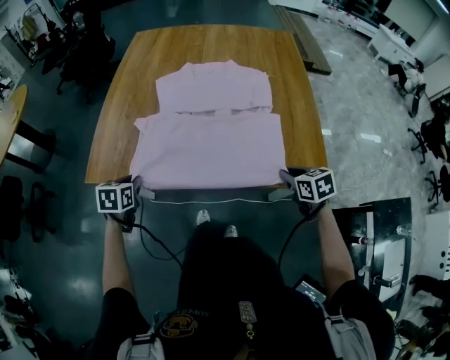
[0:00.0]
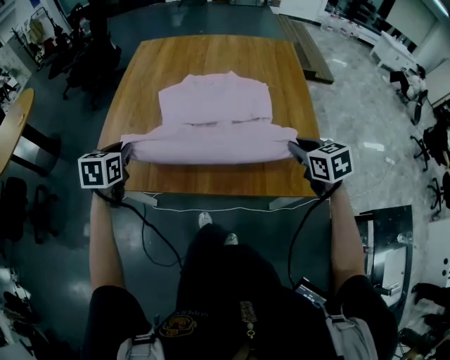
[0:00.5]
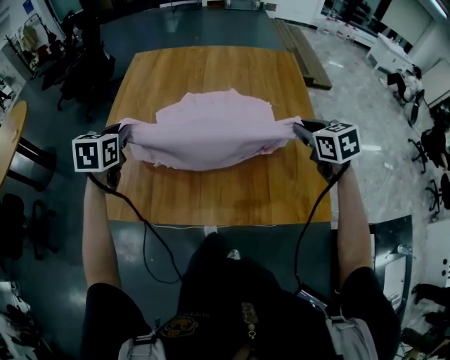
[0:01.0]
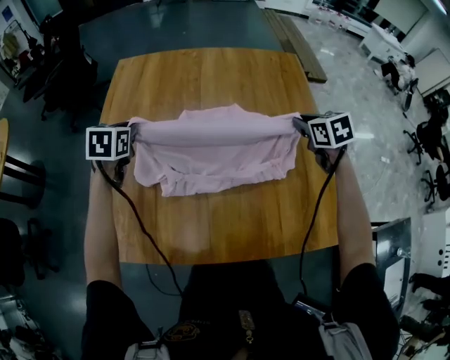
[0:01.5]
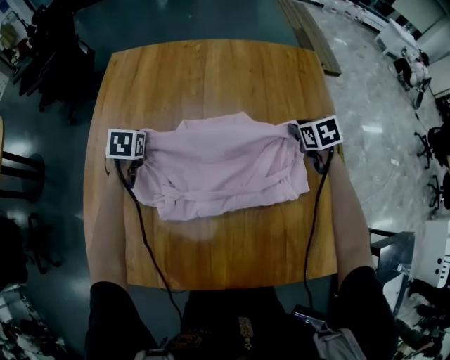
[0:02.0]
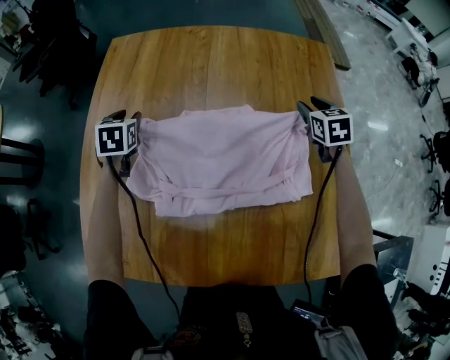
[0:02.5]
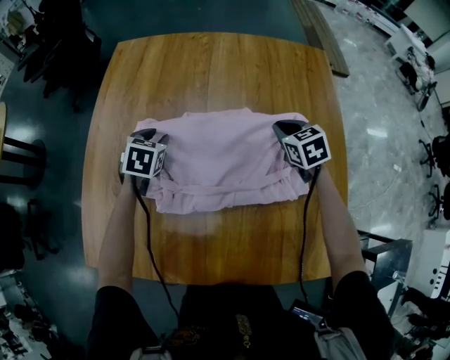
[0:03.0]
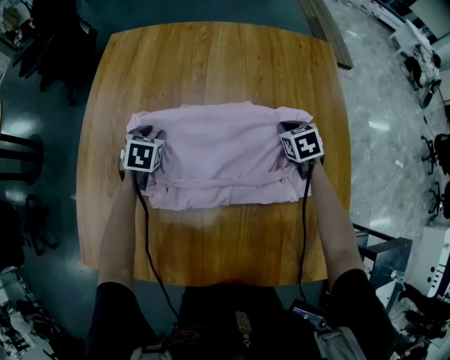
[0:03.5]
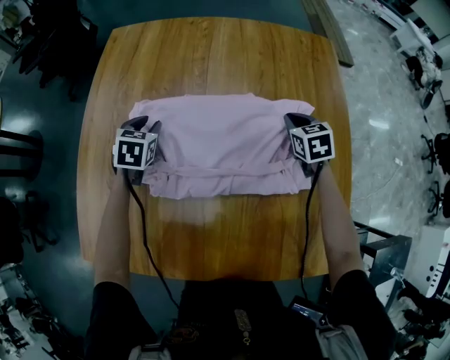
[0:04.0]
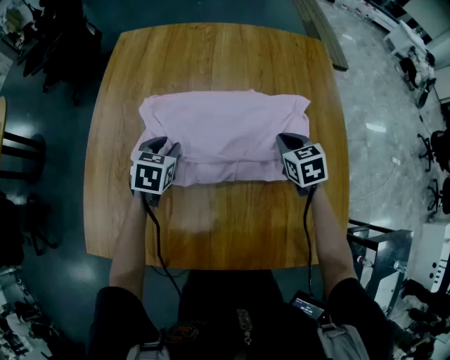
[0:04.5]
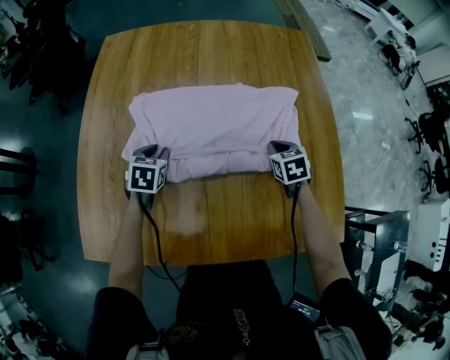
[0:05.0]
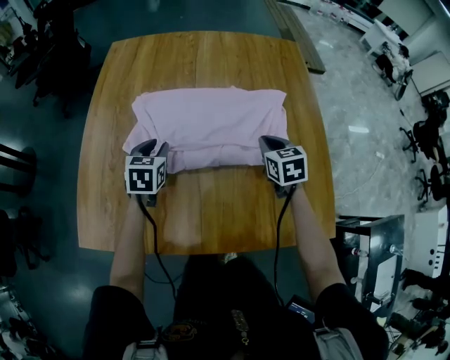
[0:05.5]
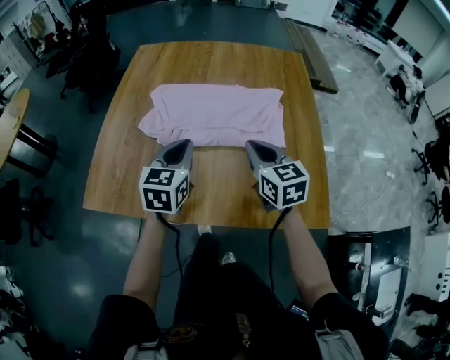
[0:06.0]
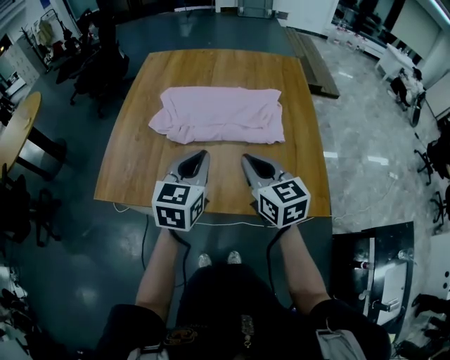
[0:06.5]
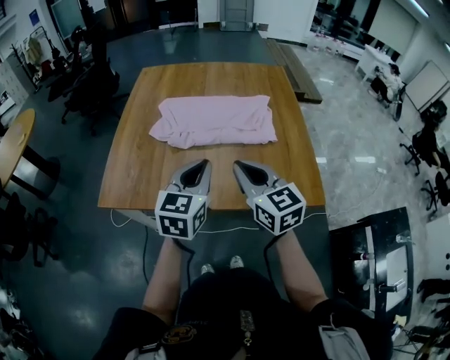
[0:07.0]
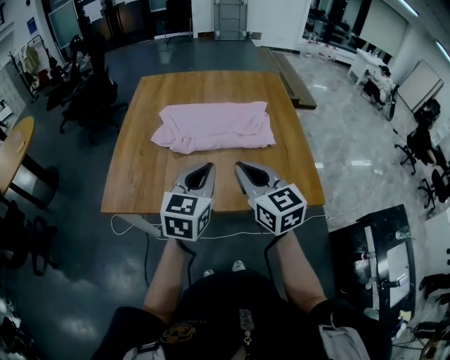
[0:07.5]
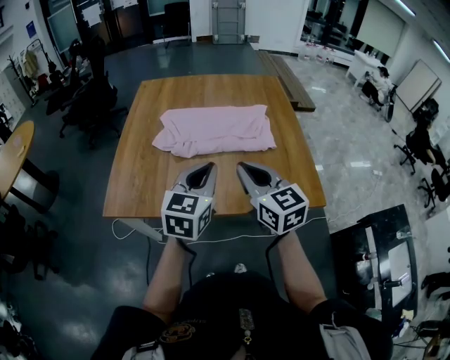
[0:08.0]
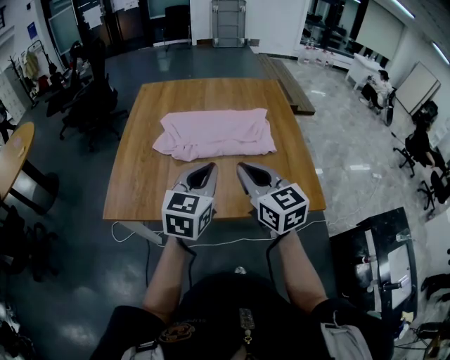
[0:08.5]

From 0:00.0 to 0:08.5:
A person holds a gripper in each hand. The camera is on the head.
From 0:00.0 to 0:02.0: Both grippers are carried forward, roughly 50 cm.
From 0:02.0 to 0:04.0: The left gripper moves up and down over approximately 10 cm, changing direction 2 times.
From 0:04.0 to 0:06.5: Both grippers travel together backward and upward, roughly 50 cm. The left gripper angles its fingers upward, by roughly 30 degrees, and closes up. The right gripper tips its fingers upward by some 30 degrees.
From 0:06.5 to 0:08.5: The left gripper travels backward by roughly 5 cm, while the right gripper shifts approximately 10 cm backward, upward and to the left.

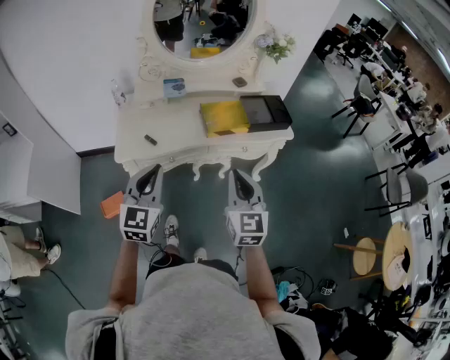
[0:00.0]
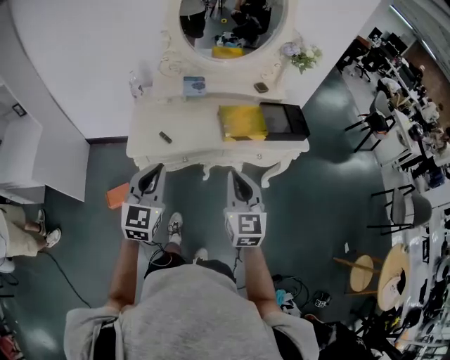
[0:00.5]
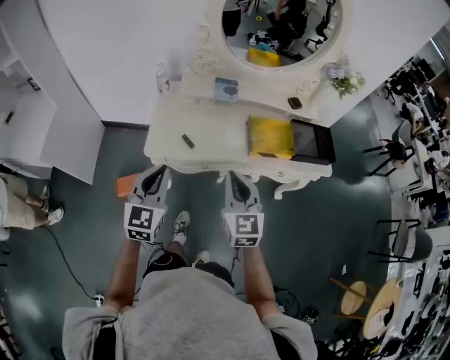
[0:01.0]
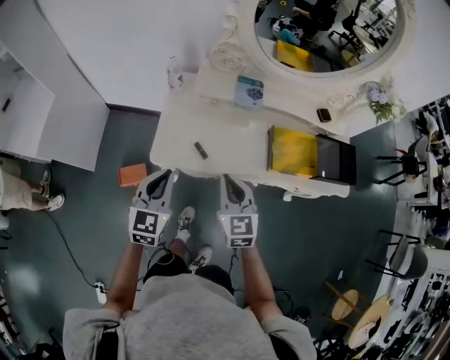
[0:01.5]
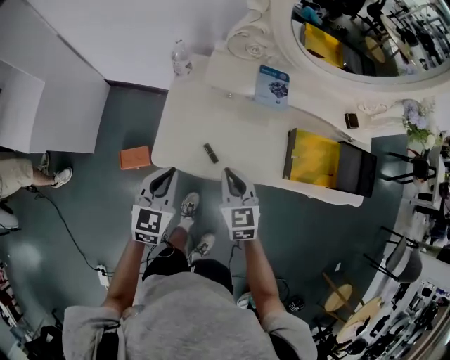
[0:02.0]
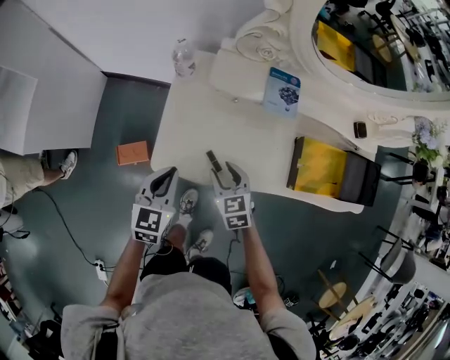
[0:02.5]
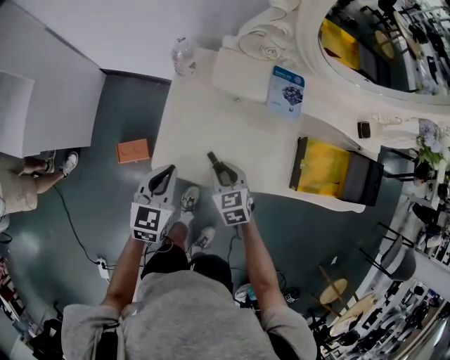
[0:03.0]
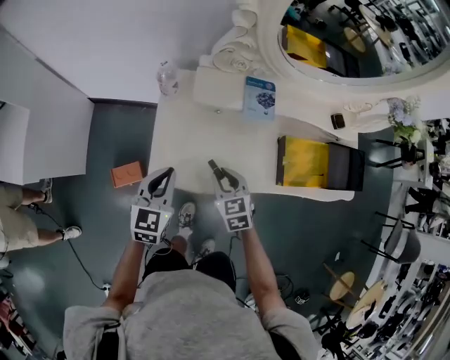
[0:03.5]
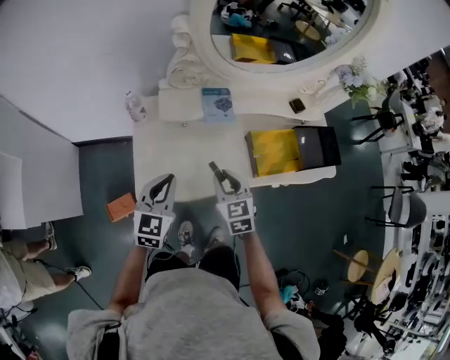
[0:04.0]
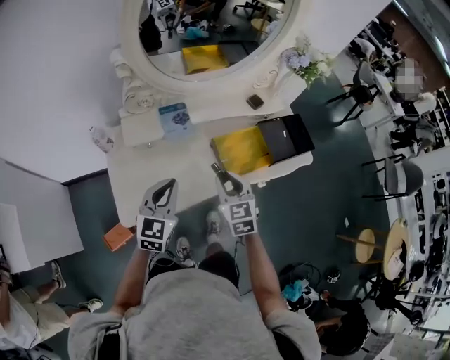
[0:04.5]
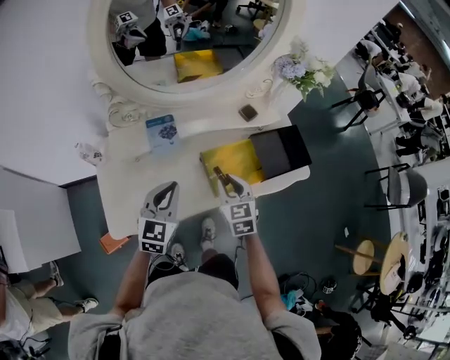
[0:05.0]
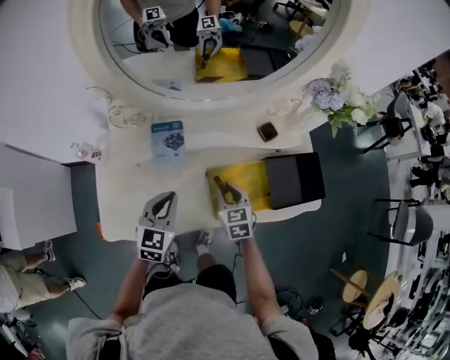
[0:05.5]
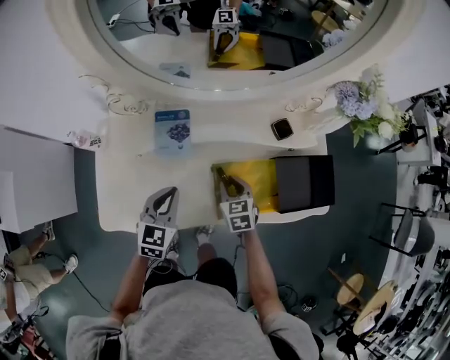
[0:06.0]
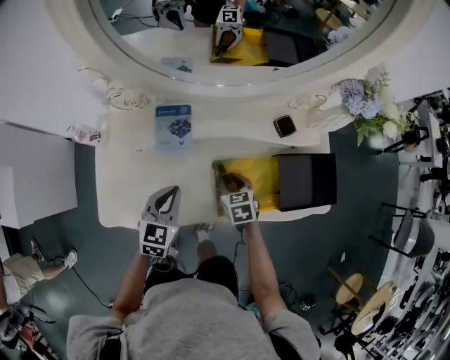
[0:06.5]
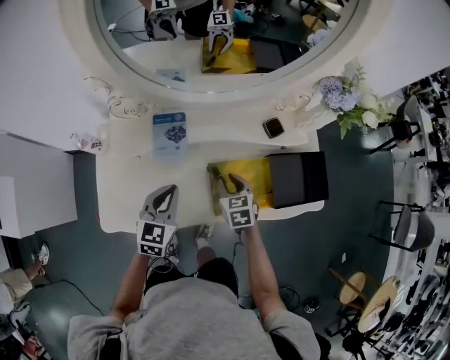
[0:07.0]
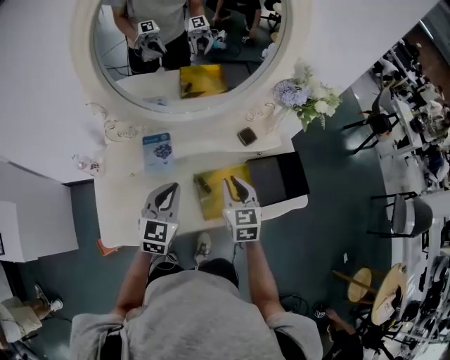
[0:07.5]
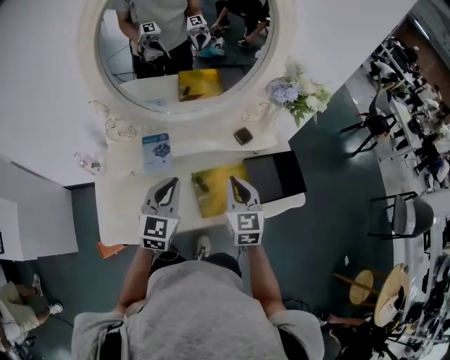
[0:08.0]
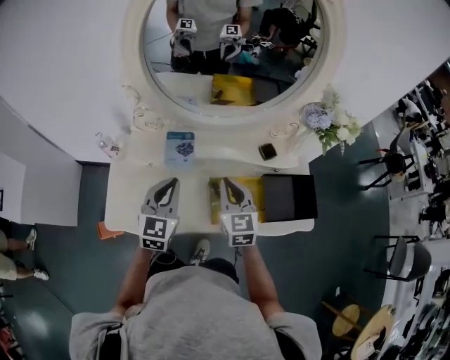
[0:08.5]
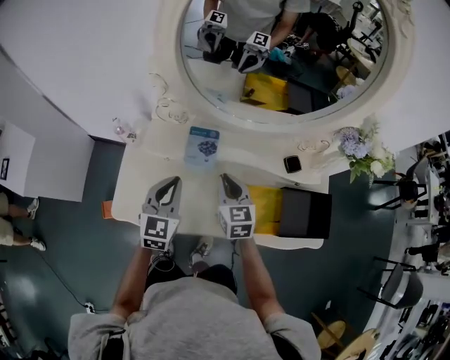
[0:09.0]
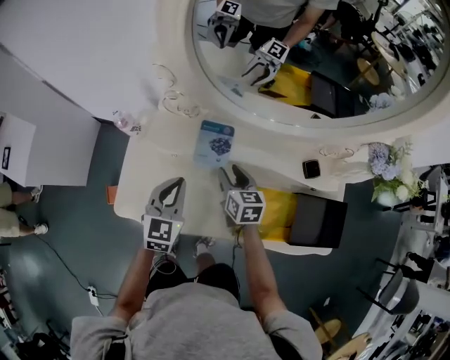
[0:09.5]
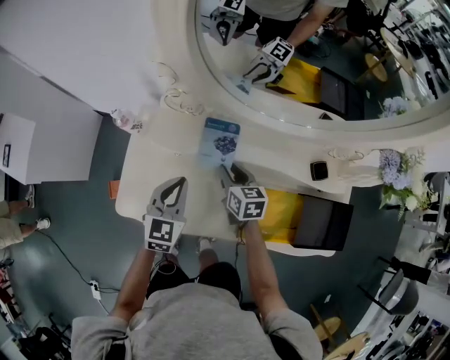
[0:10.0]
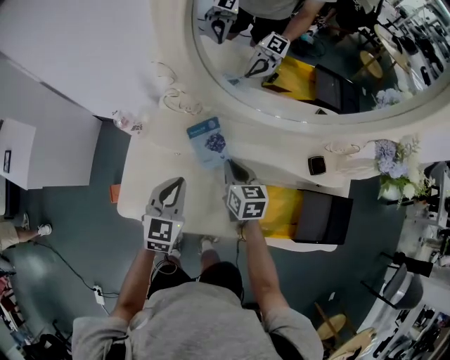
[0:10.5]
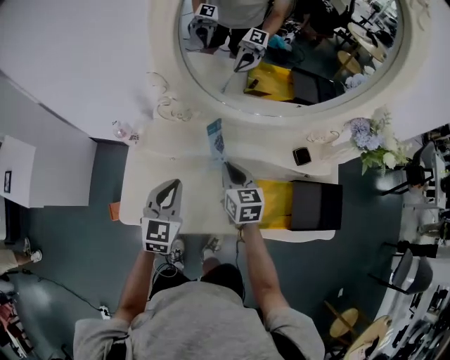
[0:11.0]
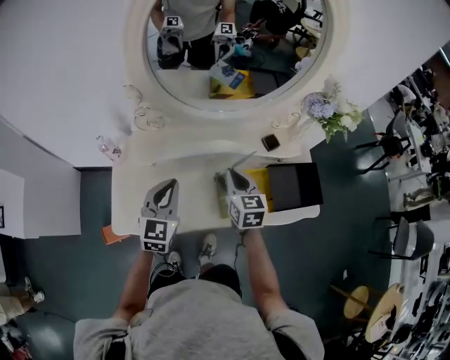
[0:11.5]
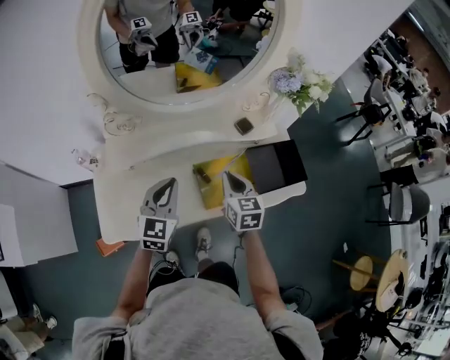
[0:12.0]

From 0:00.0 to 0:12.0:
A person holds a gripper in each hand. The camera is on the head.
From 0:00.0 to 0:02.0: The left gripper travels forward, downward and to the left by roughly 35 cm, and changes its angle by roughly 30 degrees. The right gripper goes roughly 40 cm forward, to the left and downward, and changes its angle by roughly 40 degrees.
From 0:02.0 to 0:04.0: The left gripper moves upward, to the right and forward, roughly 10 cm. The right gripper travels to the right by approximately 5 cm, and reaches about 10 cm downward, then returns.
From 0:04.0 to 0:06.0: The grippers both shift to the right, forward and downward by some 25 cm.
From 0:06.0 to 0:08.0: The left gripper travels upward and to the right by roughly 15 cm. The right gripper travels upward by roughly 20 cm, and turns by about 30 degrees.
From 0:08.0 to 0:10.0: The left gripper ends up approximately 20 cm from where it was, and changes its angle by some 20 degrees. Meanwhile the right gripper moves some 30 cm, rotates about 40 degrees, and opens.
From 0:10.0 to 0:12.0: The right gripper shifts by some 25 cm, rotates approximately 30 degrees, and closes its fingers. Meanwhile the left gripper changes place by roughly 15 cm, and turns by roughly 20 degrees.

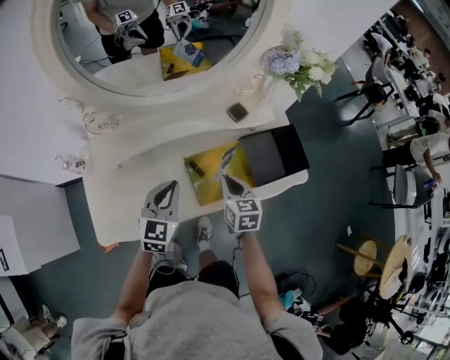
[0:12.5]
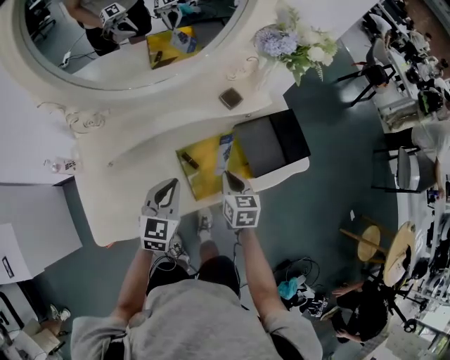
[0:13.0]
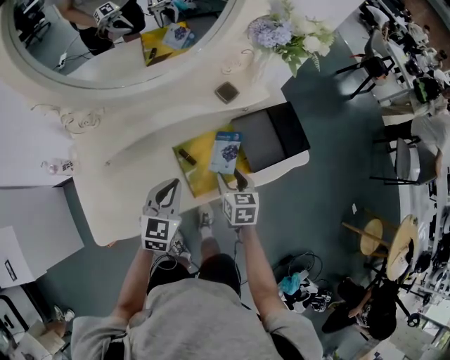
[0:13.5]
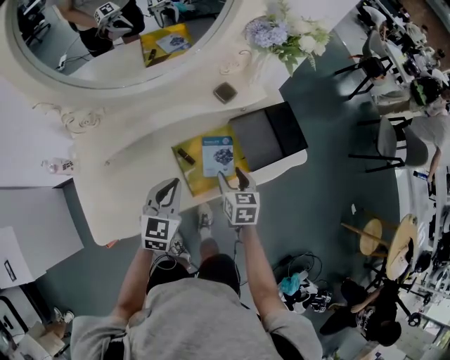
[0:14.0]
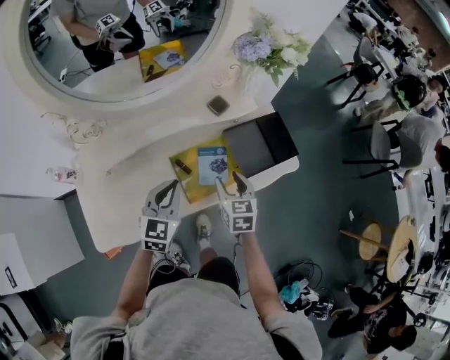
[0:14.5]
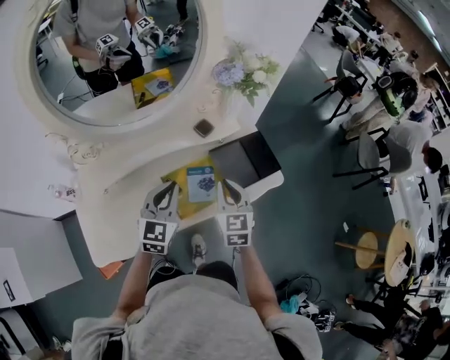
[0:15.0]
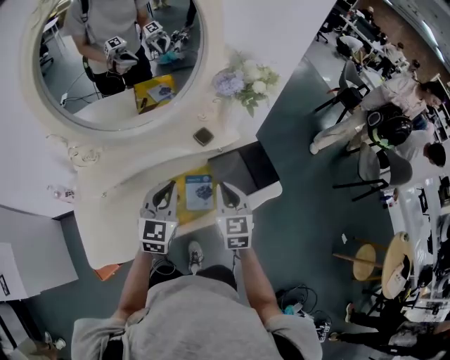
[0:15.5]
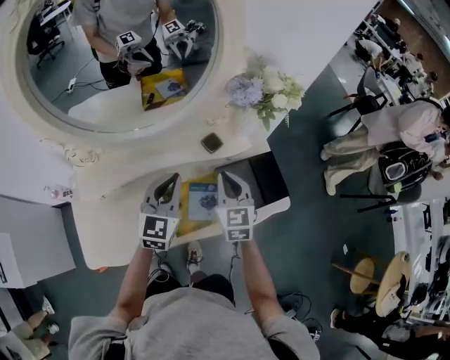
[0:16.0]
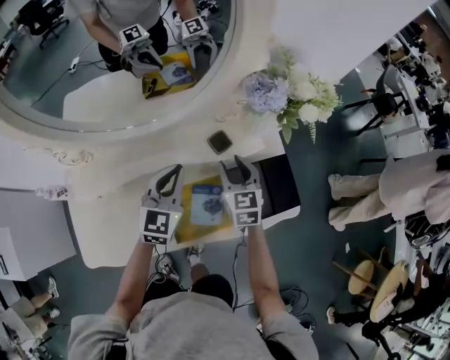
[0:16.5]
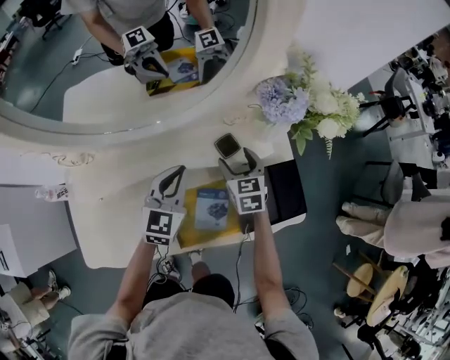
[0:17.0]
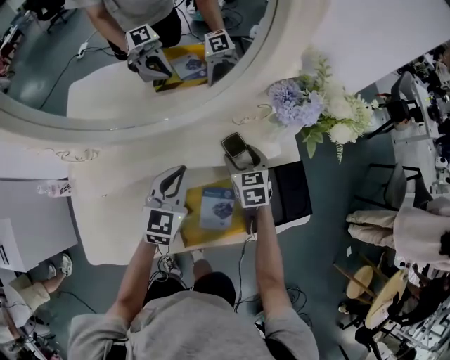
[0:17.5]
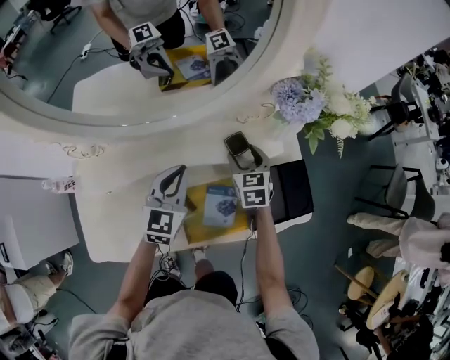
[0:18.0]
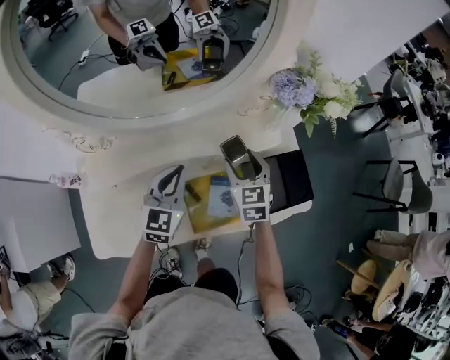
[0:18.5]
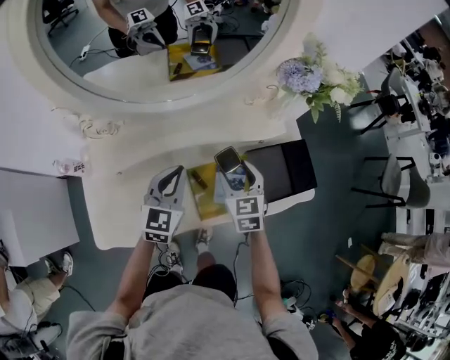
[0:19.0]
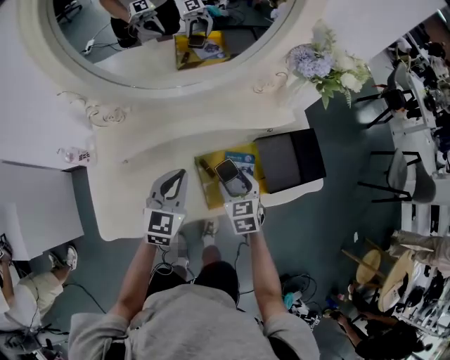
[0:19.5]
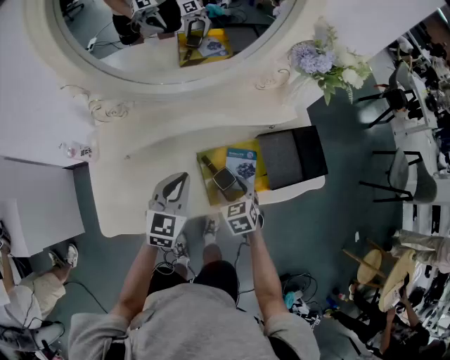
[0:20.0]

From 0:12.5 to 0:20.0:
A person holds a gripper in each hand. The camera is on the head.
From 0:12.5 to 0:14.5: The grippers both shift to the right by approximately 5 cm. The right gripper opens up.
From 0:14.5 to 0:16.5: Both grippers travel together forward, approximately 20 cm. The right gripper closes, then opens again.
From 0:16.5 to 0:18.0: The right gripper is displaced downward by some 5 cm, and opens its fingers.
From 0:18.0 to 0:20.0: The left gripper heads backward, covering roughly 15 cm; the right gripper travels backward by roughly 25 cm.
